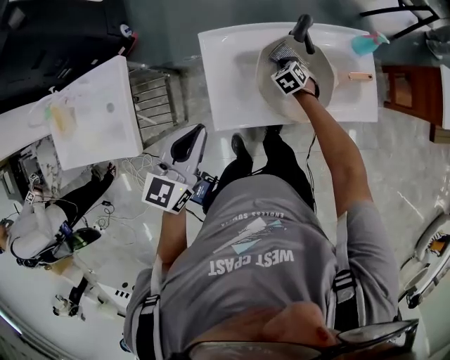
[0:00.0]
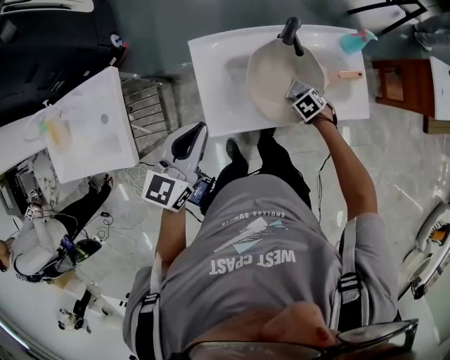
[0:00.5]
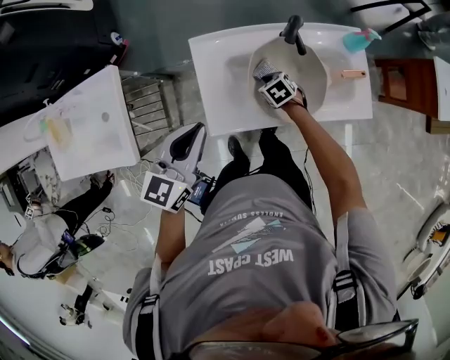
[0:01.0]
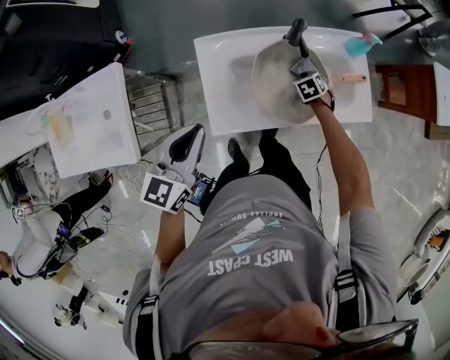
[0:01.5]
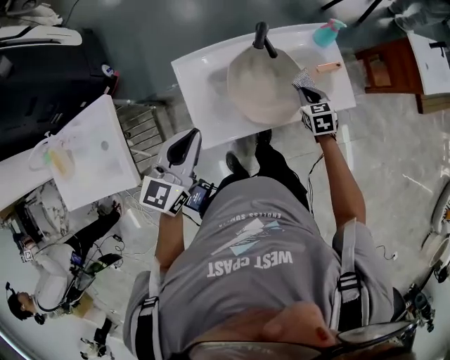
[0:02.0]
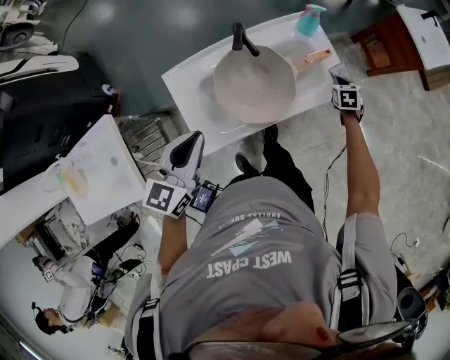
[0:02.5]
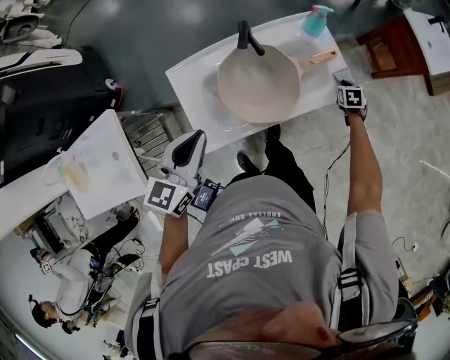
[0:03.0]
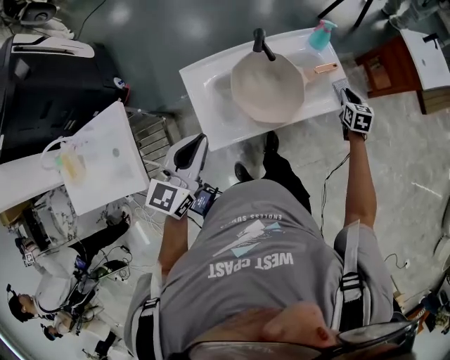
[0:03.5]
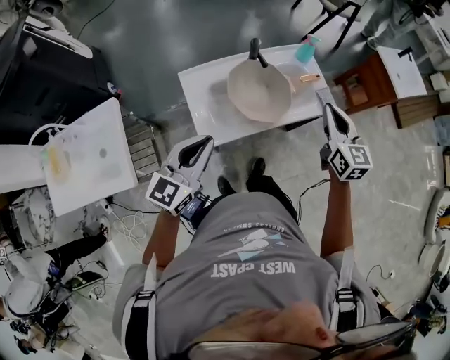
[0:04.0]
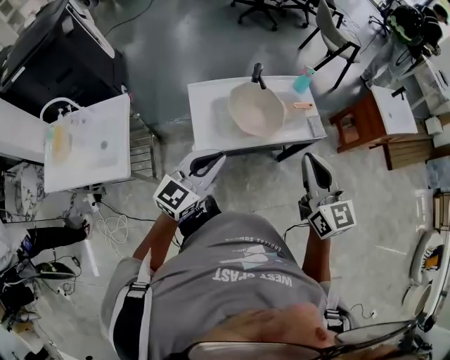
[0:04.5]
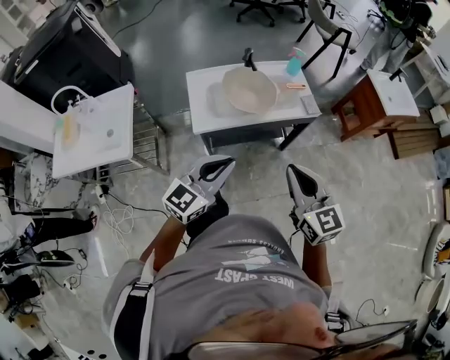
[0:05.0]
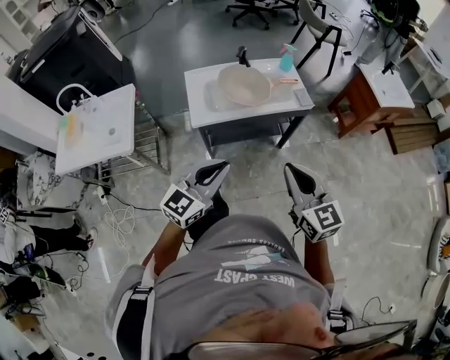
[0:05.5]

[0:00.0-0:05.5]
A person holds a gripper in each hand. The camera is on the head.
0:00.0 to 0:02.0: The right gripper moves some 20 cm, and rotates approximately 30 degrees.
0:02.0 to 0:03.5: The left gripper ends up roughly 5 cm from where it was; the right gripper moves to the right, roughly 15 cm, and rotates some 20 degrees.
0:03.5 to 0:05.5: The right gripper is displaced backward and upward by roughly 60 cm, and angles its fingers upward, by about 30 degrees. Meanwhile the left gripper shifts about 40 cm backward and to the right.

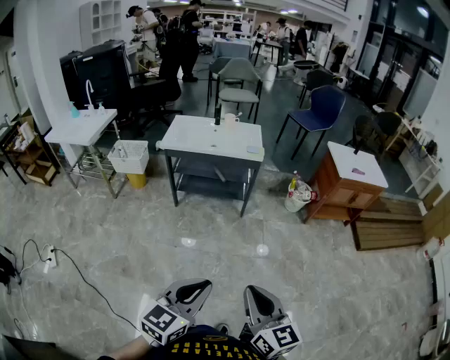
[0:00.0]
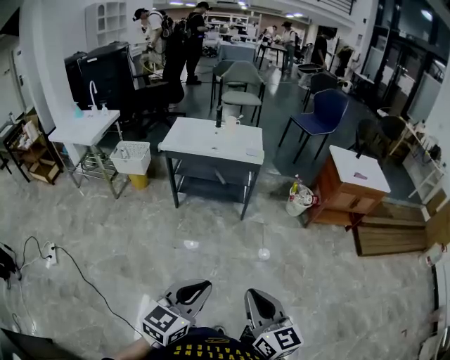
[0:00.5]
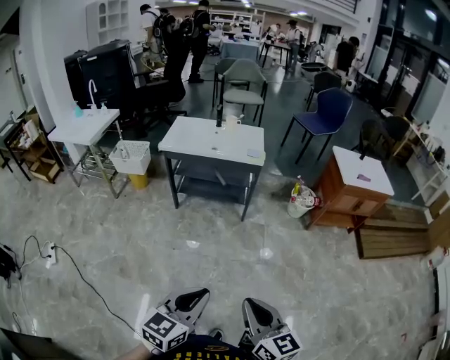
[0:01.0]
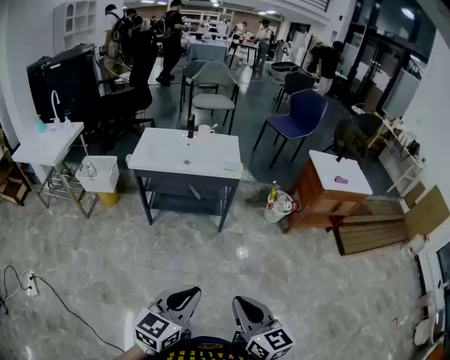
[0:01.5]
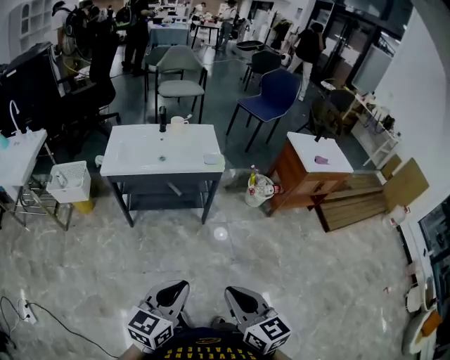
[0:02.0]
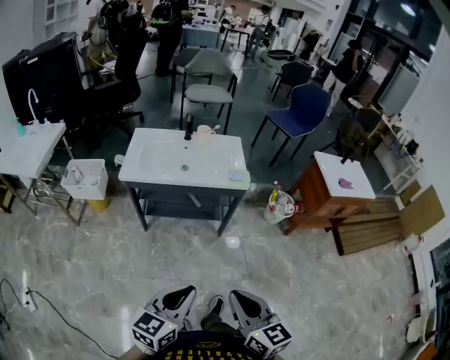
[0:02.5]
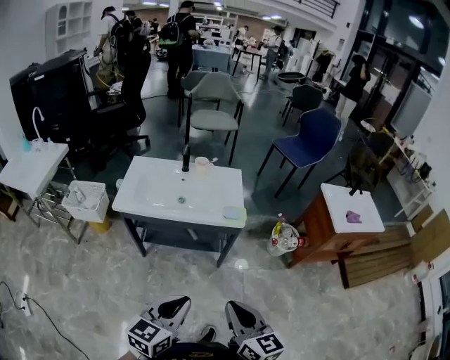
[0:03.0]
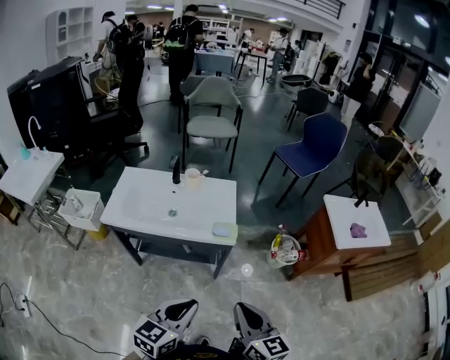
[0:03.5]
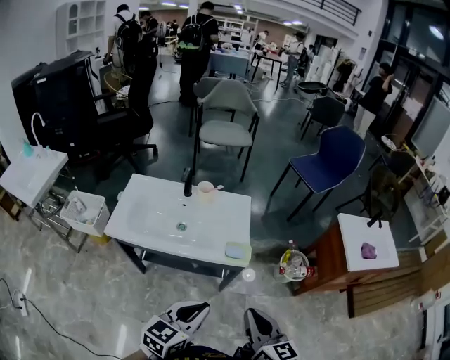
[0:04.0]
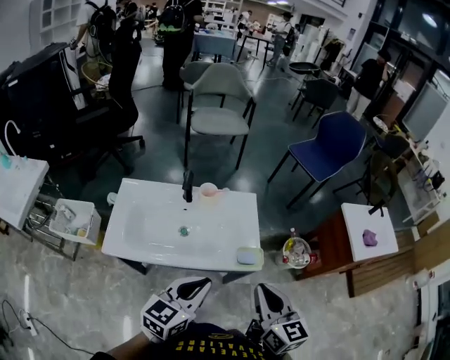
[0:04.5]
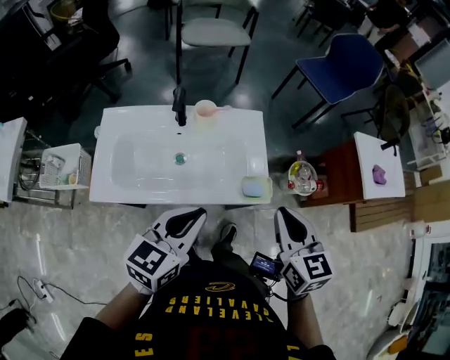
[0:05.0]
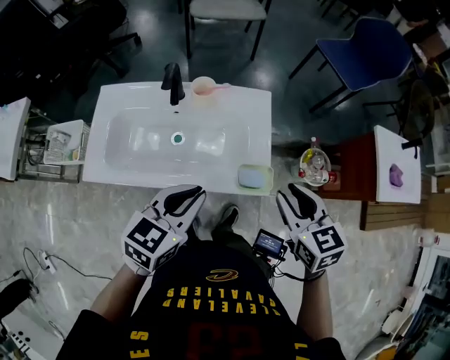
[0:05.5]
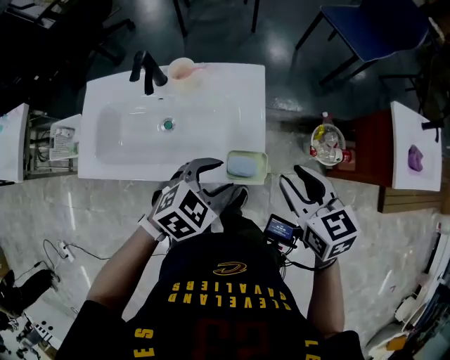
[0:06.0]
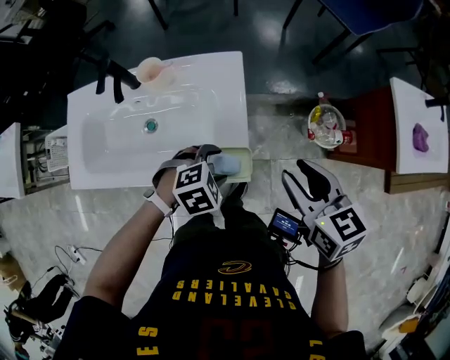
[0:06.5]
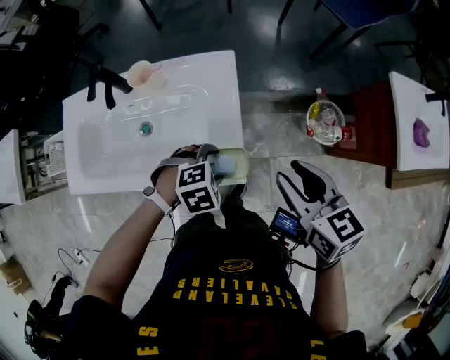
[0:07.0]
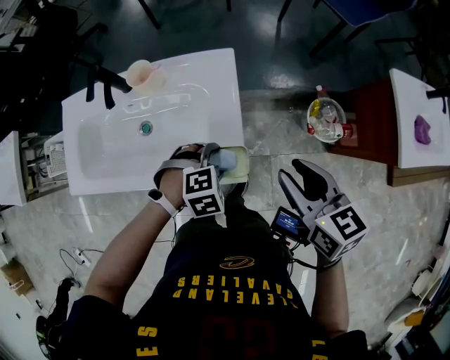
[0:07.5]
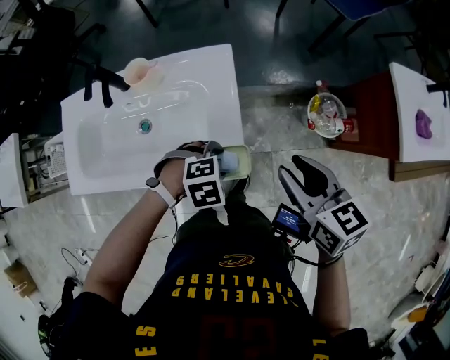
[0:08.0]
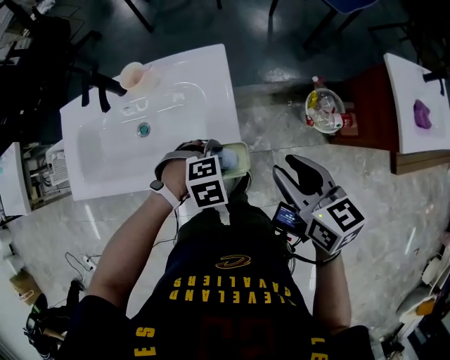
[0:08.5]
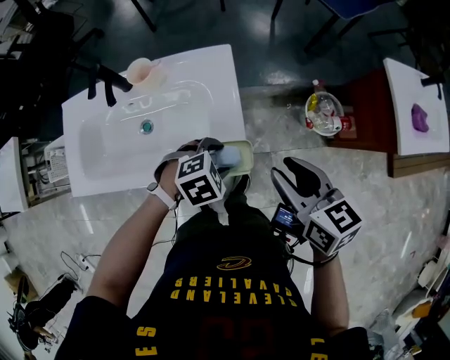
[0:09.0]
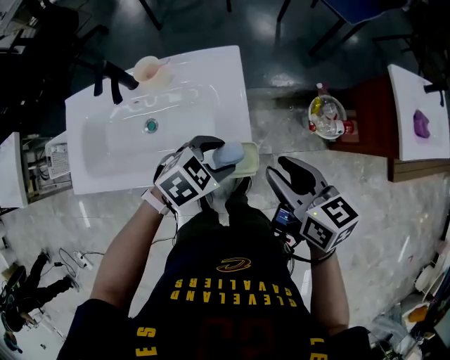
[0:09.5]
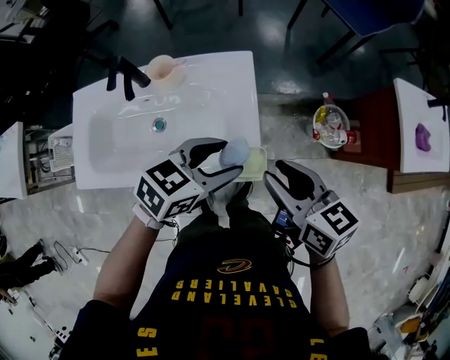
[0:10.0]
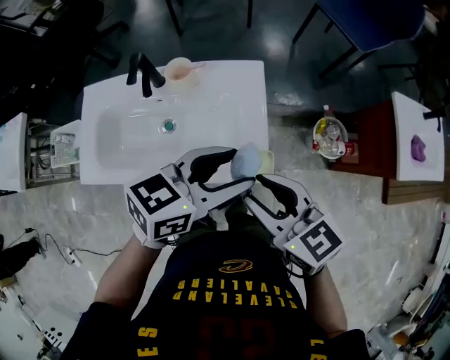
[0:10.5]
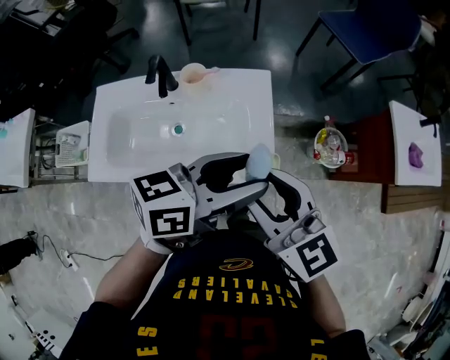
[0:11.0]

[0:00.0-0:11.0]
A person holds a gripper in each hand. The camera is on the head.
0:00.0 to 0:02.0: Both grippers move forward, about 20 cm.
0:02.0 to 0:03.5: The two grippers go some 30 cm forward.
0:03.5 to 0:05.5: The two grippers go some 30 cm forward. The right gripper rotates roughly 30 degrees, and opens up.
0:05.5 to 0:07.5: The right gripper shifts about 15 cm to the right, forward and downward. The left gripper moves downward, to the right and forward, approximately 30 cm, tilts its fingers about 50 degrees downward, and opens up.
0:07.5 to 0:09.0: There are only small adjustments of the grippers.
0:09.0 to 0:11.0: The right gripper is displaced to the left, upward and backward by about 20 cm, and turns by roughly 30 degrees. The left gripper heads upward, covering some 25 cm, and tilts its fingers about 60 degrees upward.

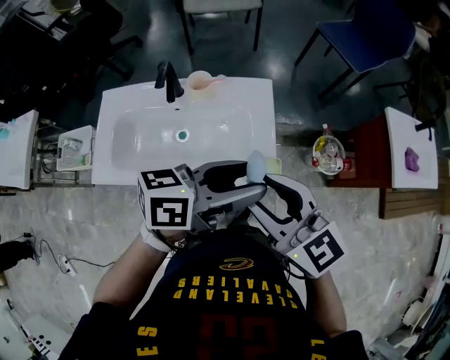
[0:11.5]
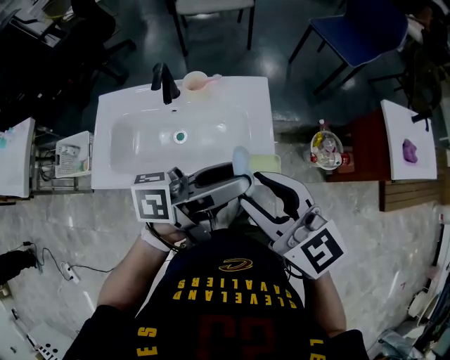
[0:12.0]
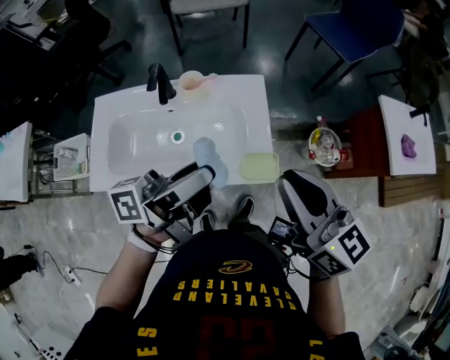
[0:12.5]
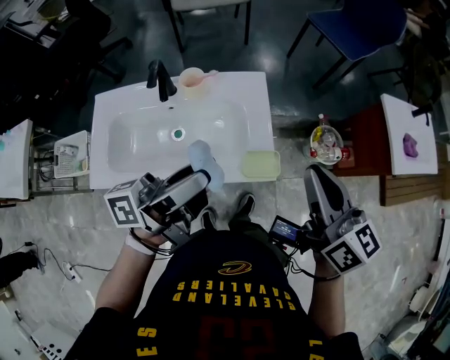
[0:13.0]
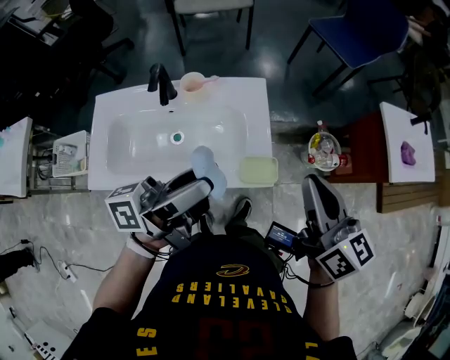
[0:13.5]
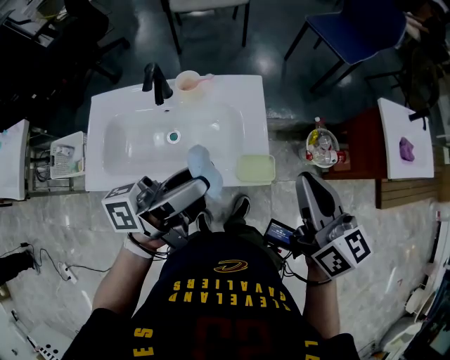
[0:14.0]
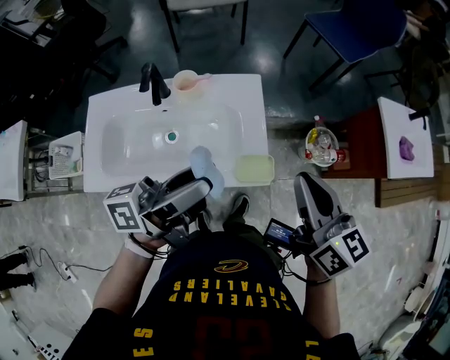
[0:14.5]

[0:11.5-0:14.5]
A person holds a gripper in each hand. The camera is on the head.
0:11.5 to 0:13.0: The left gripper is displaced to the left by about 10 cm, and changes its angle by roughly 30 degrees. The right gripper shifts about 10 cm to the right, turns by approximately 30 degrees, and closes up.
0:13.0 to 0:14.5: The grippers make only small movements.

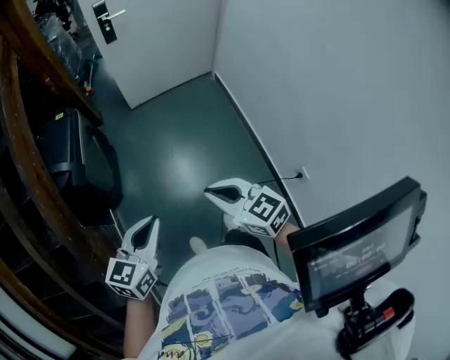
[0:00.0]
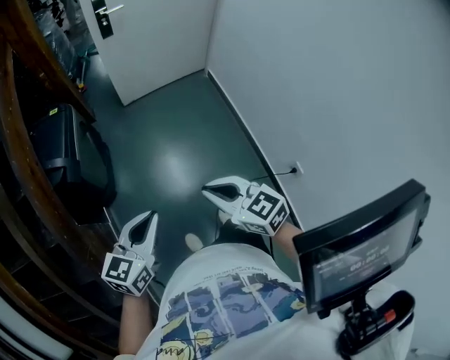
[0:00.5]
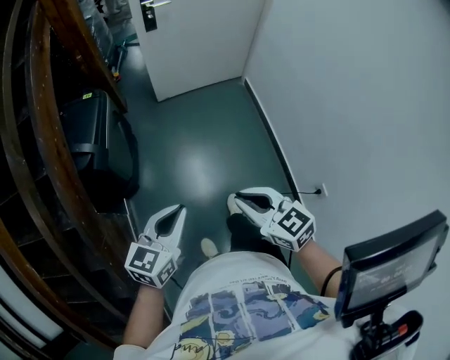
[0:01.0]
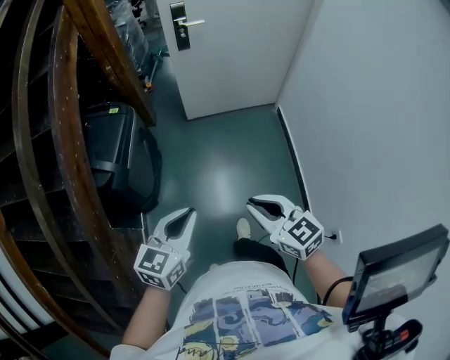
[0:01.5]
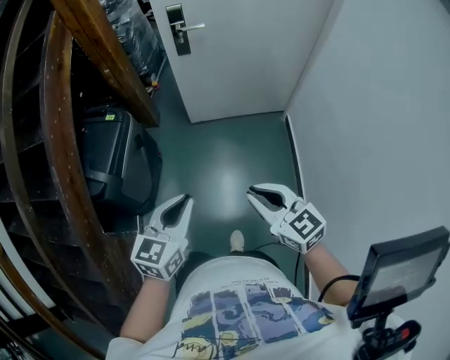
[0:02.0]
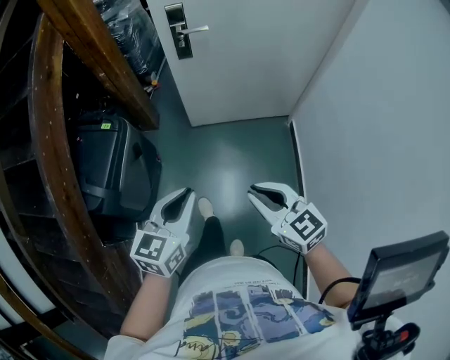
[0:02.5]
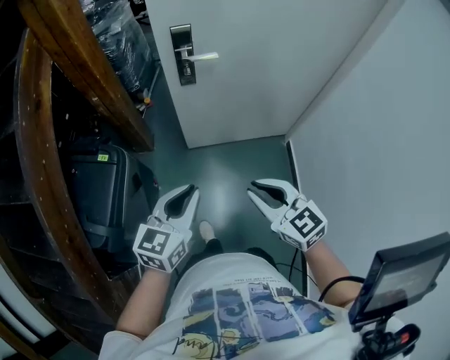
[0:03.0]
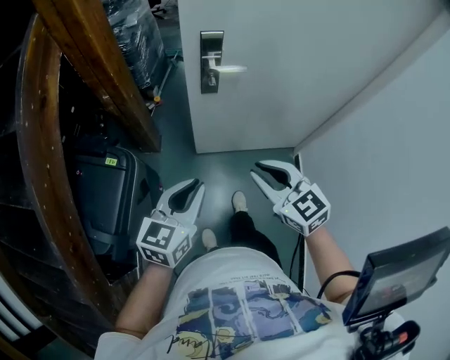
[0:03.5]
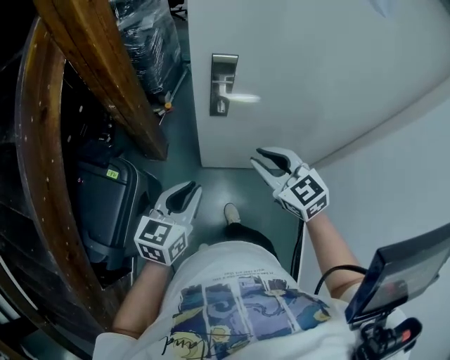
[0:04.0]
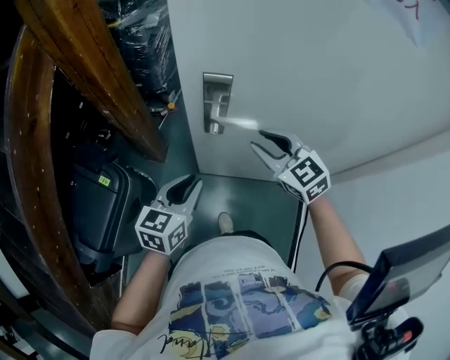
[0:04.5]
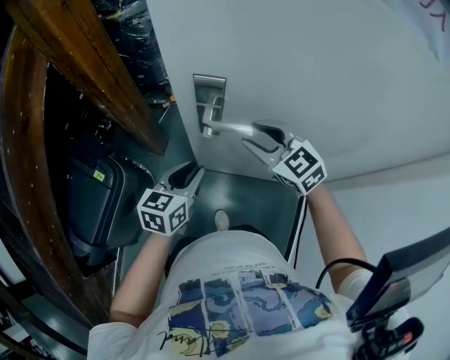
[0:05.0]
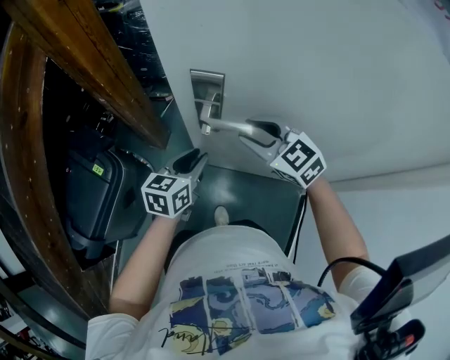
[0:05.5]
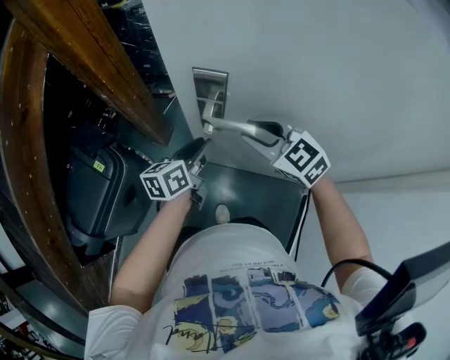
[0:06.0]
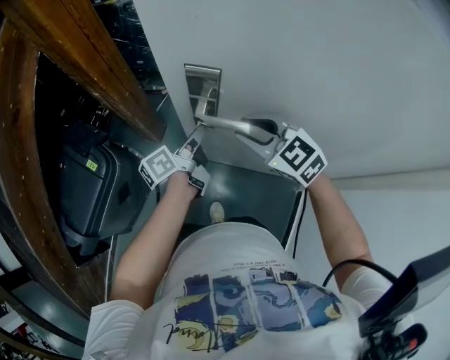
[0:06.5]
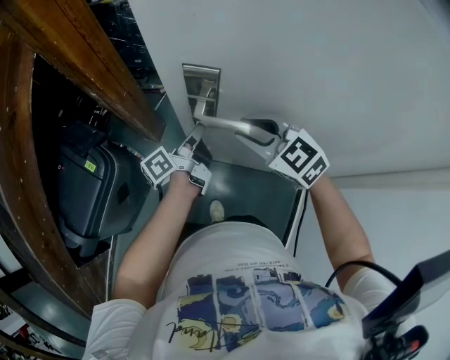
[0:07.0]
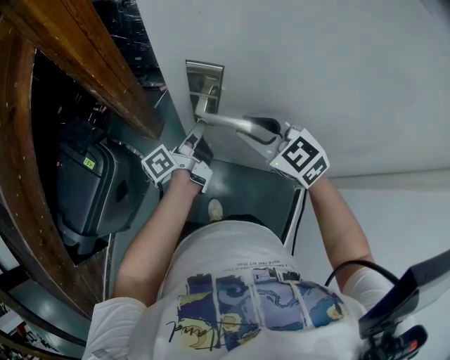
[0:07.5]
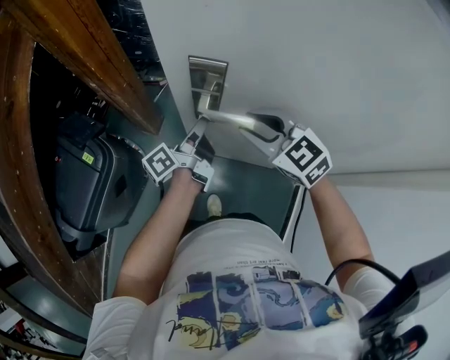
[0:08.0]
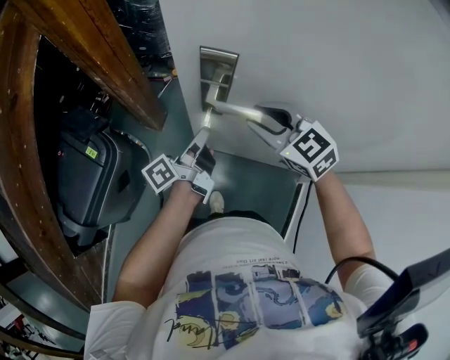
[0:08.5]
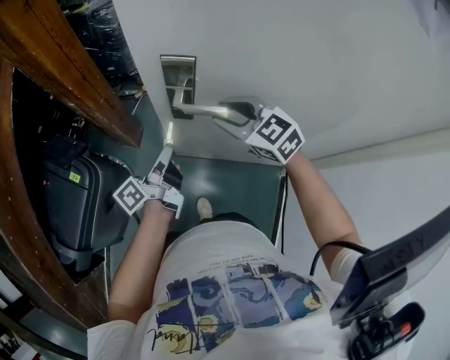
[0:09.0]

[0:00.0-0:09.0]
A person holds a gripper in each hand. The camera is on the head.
0:00.0 to 0:02.0: The two grippers go roughly 30 cm forward.
0:02.0 to 0:04.5: The pair of grippers is taken forward, some 60 cm. The right gripper rotates approximately 20 degrees, and opens its fingers.
0:04.5 to 0:07.0: The left gripper shifts approximately 20 cm forward, to the right and downward, and rolls counterclockwise, seen from behind, by about 70 degrees, while the right gripper ends up about 5 cm from where it was.
0:07.0 to 0:09.0: The left gripper travels backward and to the left by approximately 10 cm.
